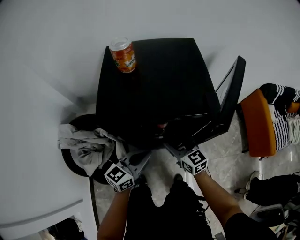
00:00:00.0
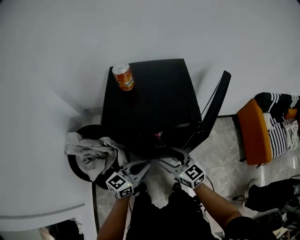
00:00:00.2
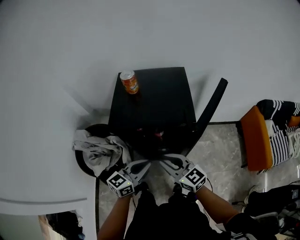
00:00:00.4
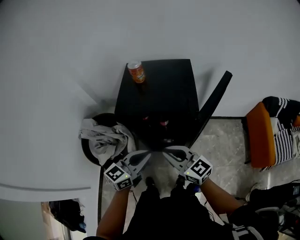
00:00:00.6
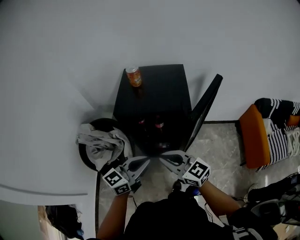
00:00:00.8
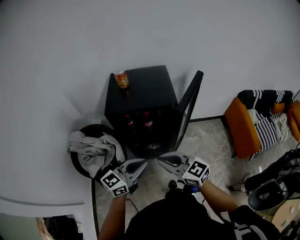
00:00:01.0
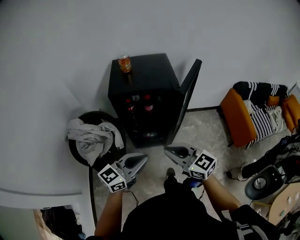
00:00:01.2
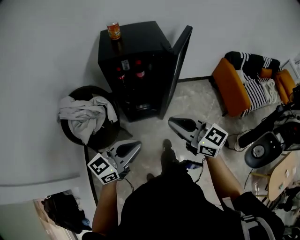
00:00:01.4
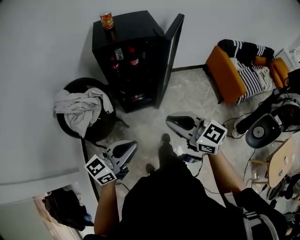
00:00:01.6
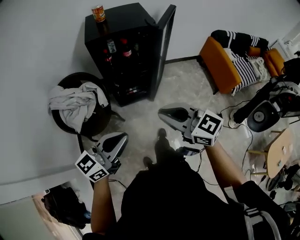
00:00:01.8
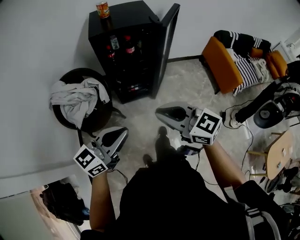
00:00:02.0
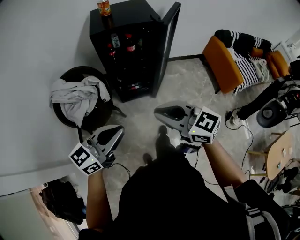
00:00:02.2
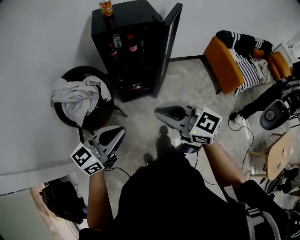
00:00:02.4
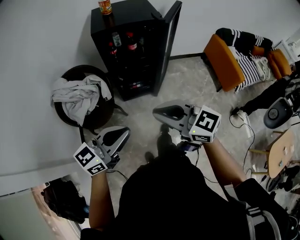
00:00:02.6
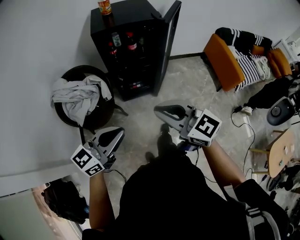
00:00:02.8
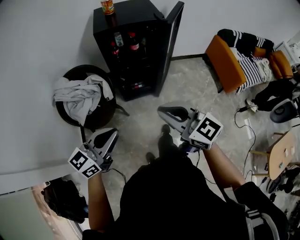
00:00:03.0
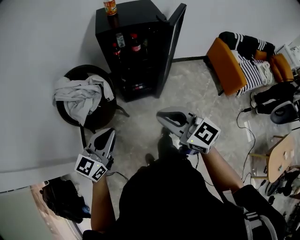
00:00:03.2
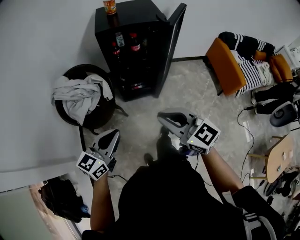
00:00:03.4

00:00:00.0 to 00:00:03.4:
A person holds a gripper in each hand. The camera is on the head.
00:00:00.0 to 00:00:01.6: The two grippers go some 40 cm backward and upward. The right gripper closes.
00:00:01.6 to 00:00:03.4: The left gripper heads to the left, covering approximately 10 cm, and turns by roughly 20 degrees. The right gripper shifts roughly 5 cm to the left.

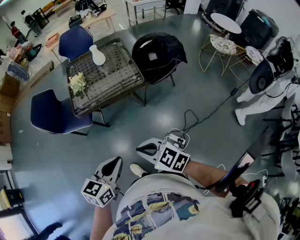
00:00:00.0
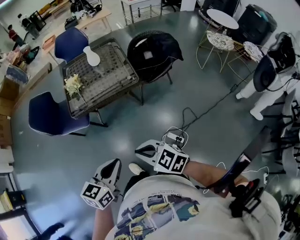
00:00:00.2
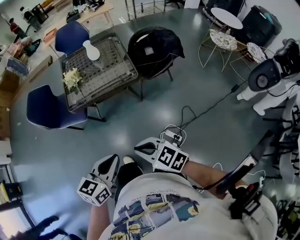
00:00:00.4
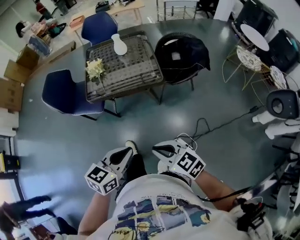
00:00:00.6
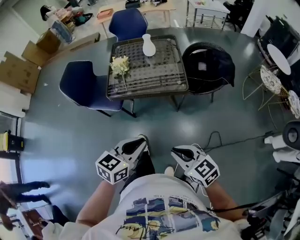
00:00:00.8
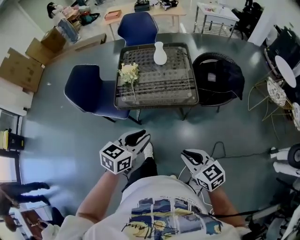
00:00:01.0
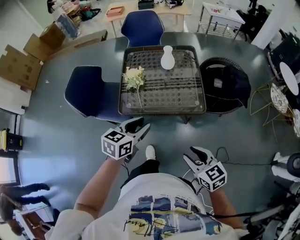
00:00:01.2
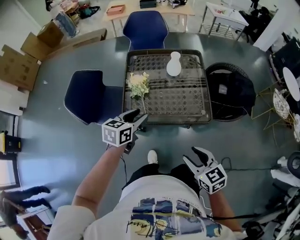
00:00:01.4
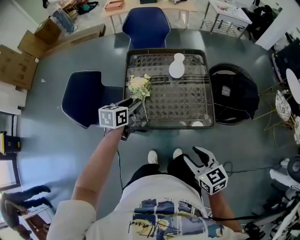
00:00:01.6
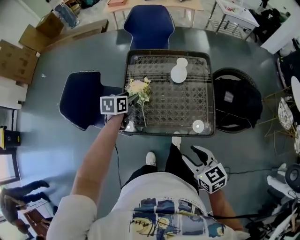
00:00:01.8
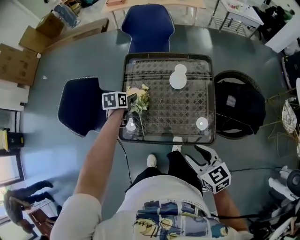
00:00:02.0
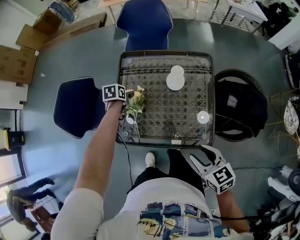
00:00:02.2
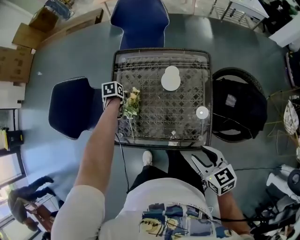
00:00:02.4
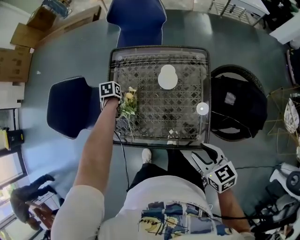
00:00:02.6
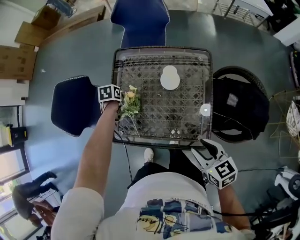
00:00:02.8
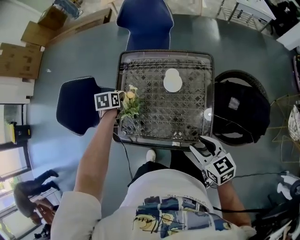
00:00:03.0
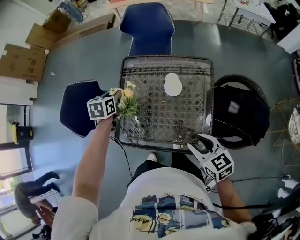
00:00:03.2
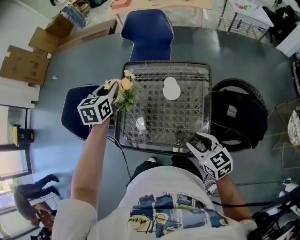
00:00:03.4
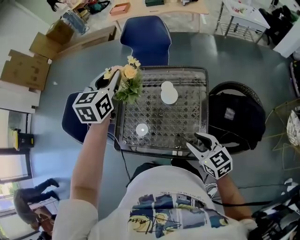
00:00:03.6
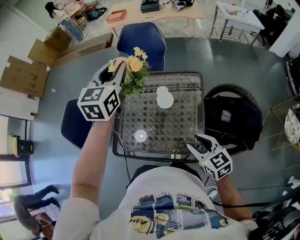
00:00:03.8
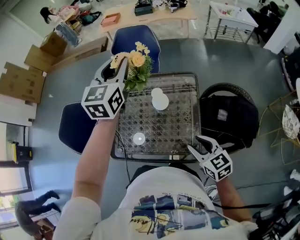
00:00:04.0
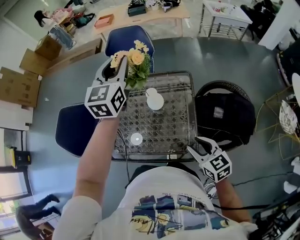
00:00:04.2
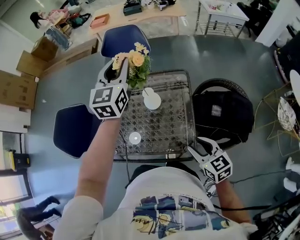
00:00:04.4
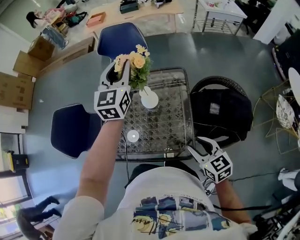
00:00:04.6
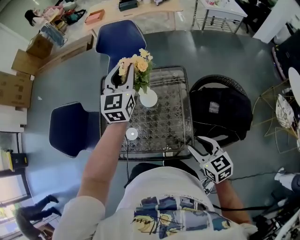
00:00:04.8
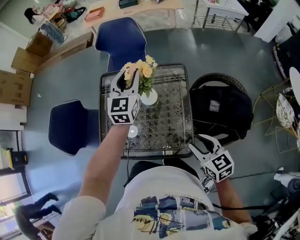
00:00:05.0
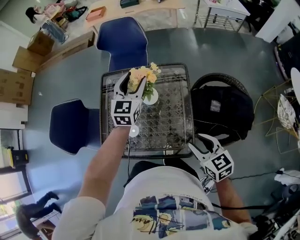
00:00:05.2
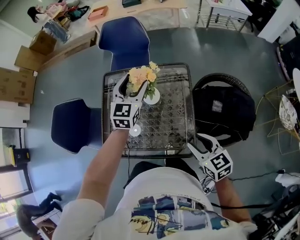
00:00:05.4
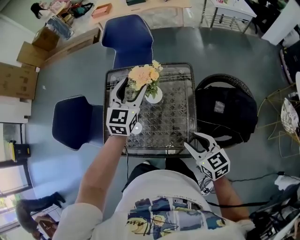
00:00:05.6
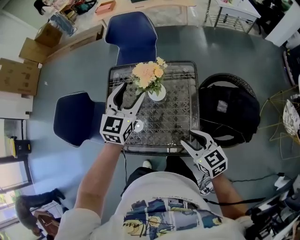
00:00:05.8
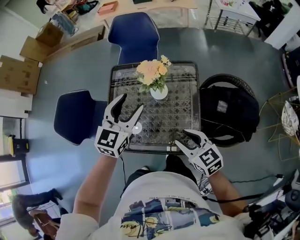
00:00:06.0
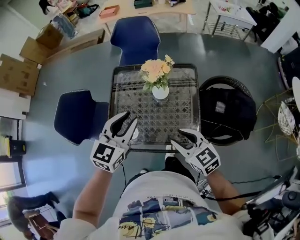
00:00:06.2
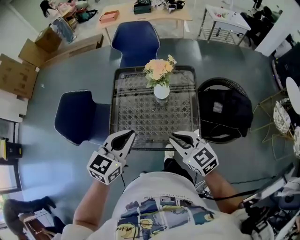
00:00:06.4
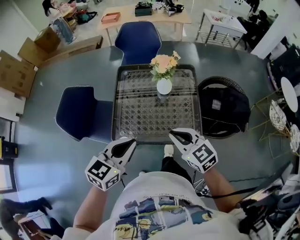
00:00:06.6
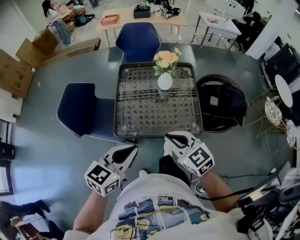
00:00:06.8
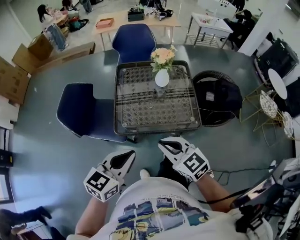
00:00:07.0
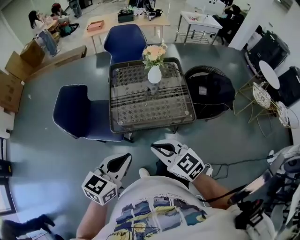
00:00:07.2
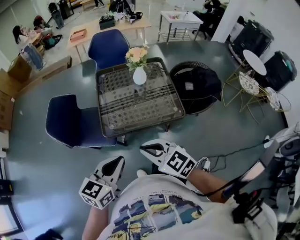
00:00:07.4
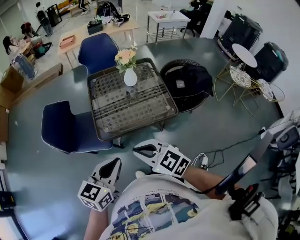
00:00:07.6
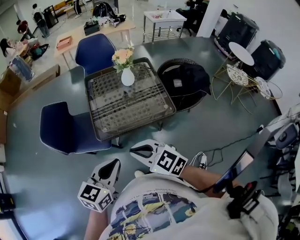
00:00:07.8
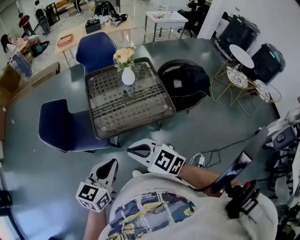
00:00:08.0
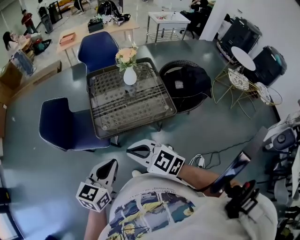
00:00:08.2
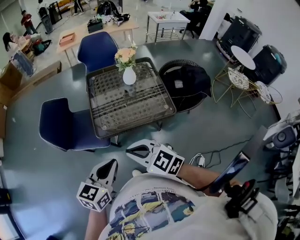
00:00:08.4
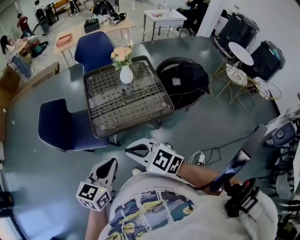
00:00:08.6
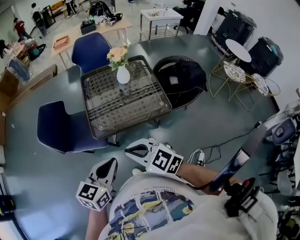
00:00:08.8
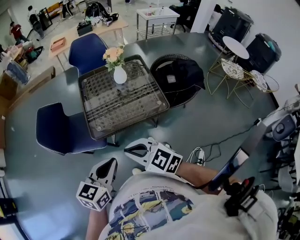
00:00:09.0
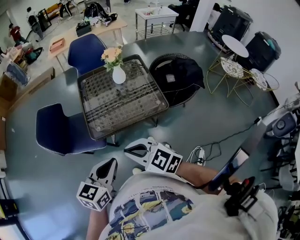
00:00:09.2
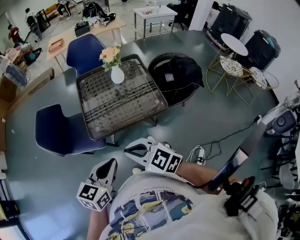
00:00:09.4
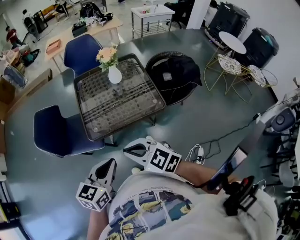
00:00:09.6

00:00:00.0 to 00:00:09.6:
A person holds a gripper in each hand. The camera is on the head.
00:00:00.0 to 00:00:01.6: The left gripper goes roughly 60 cm forward, rotates about 30 degrees, and opens its fingers. Meanwhile the right gripper shifts some 35 cm forward, and opens.
00:00:01.6 to 00:00:03.2: The left gripper reaches approximately 20 cm downward, then returns, rotates roughly 30 degrees, and opens and closes again; the right gripper moves approximately 25 cm.
00:00:03.2 to 00:00:04.8: The right gripper is displaced to the right by about 10 cm. Meanwhile the left gripper travels to the right and upward by about 30 cm, and angles its fingers upward, by some 40 degrees.
00:00:04.8 to 00:00:06.4: The right gripper is displaced to the left by approximately 15 cm, and closes its fingers. Meanwhile the left gripper goes about 35 cm backward and to the left, changes its angle by approximately 30 degrees, and opens, then closes again.
00:00:06.4 to 00:00:08.0: The two grippers go some 30 cm backward and to the left.
00:00:08.0 to 00:00:09.6: There are only small adjustments of the grippers.

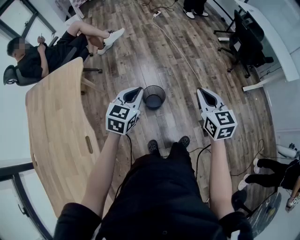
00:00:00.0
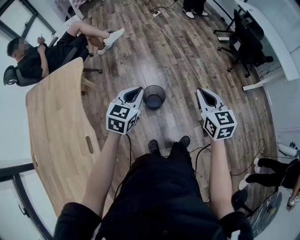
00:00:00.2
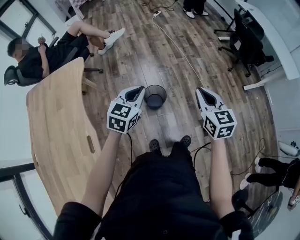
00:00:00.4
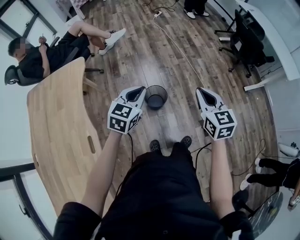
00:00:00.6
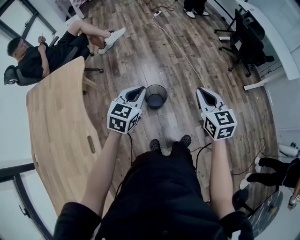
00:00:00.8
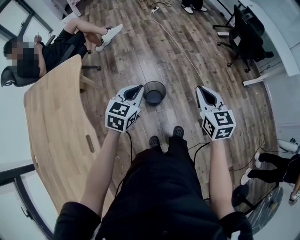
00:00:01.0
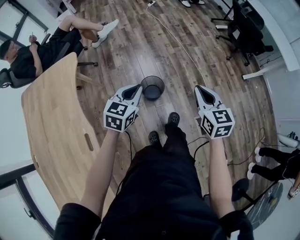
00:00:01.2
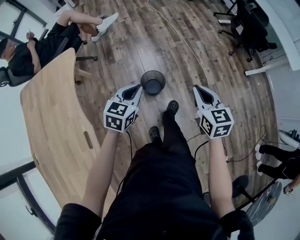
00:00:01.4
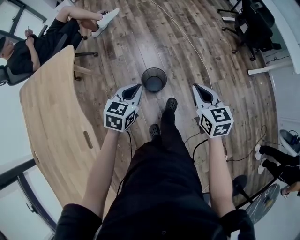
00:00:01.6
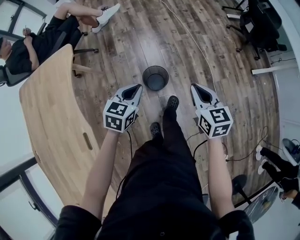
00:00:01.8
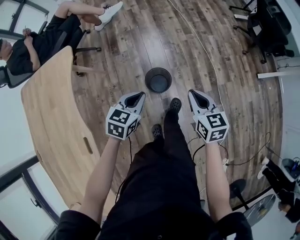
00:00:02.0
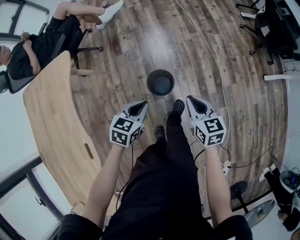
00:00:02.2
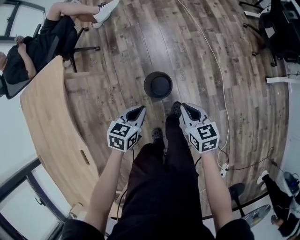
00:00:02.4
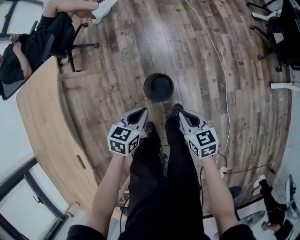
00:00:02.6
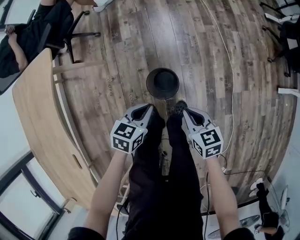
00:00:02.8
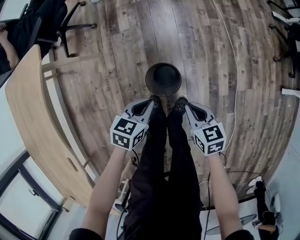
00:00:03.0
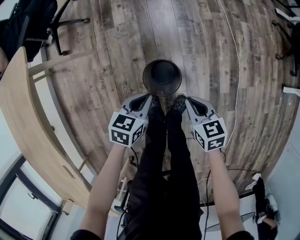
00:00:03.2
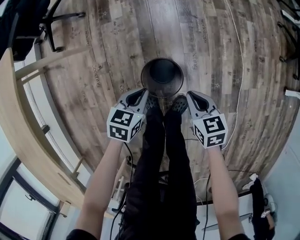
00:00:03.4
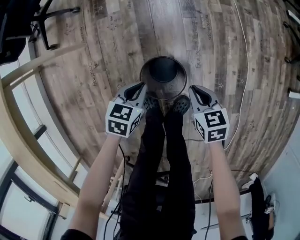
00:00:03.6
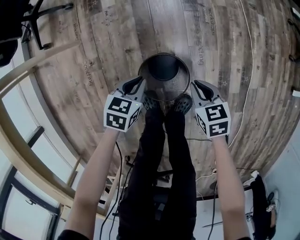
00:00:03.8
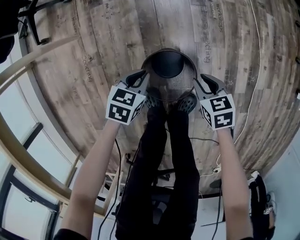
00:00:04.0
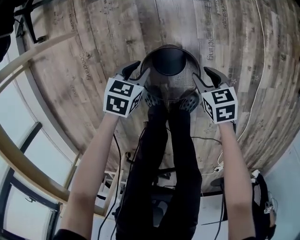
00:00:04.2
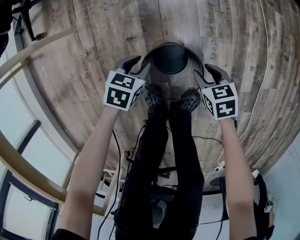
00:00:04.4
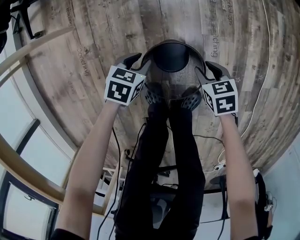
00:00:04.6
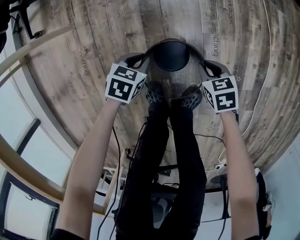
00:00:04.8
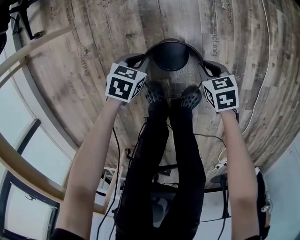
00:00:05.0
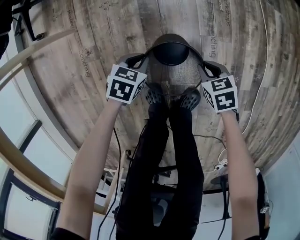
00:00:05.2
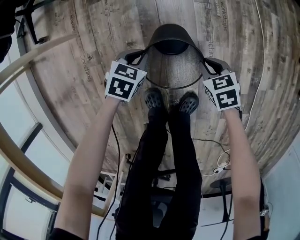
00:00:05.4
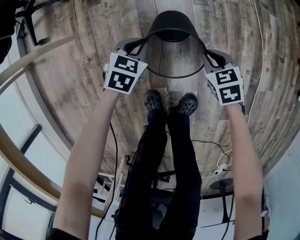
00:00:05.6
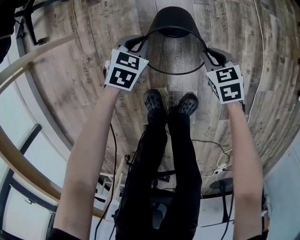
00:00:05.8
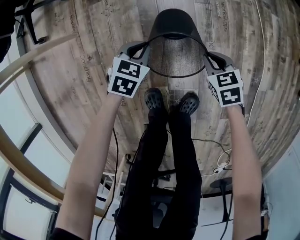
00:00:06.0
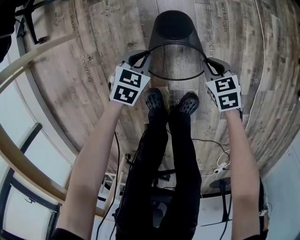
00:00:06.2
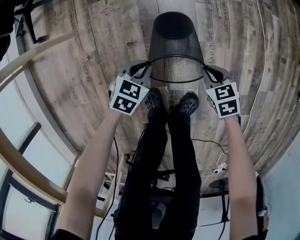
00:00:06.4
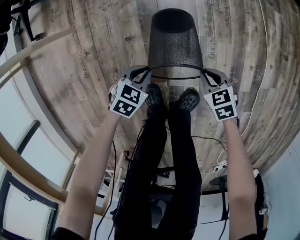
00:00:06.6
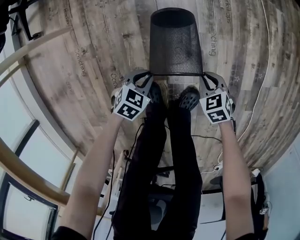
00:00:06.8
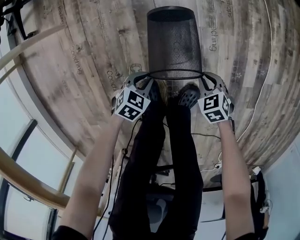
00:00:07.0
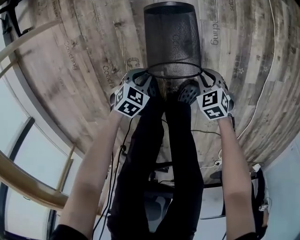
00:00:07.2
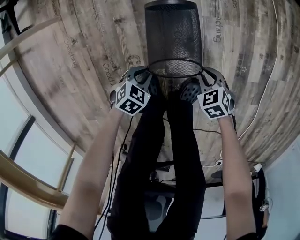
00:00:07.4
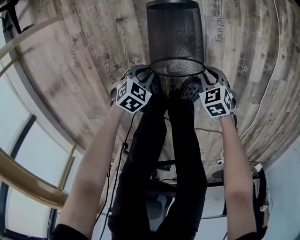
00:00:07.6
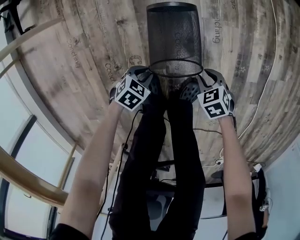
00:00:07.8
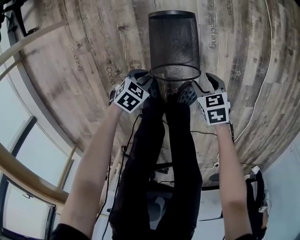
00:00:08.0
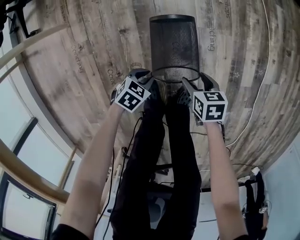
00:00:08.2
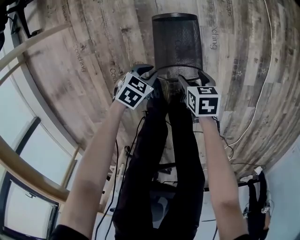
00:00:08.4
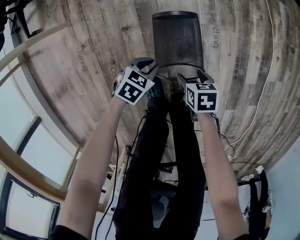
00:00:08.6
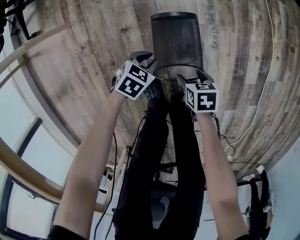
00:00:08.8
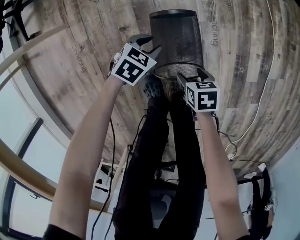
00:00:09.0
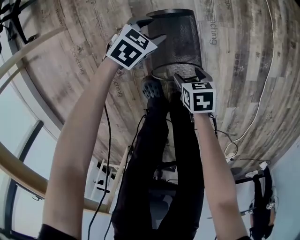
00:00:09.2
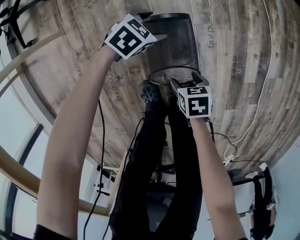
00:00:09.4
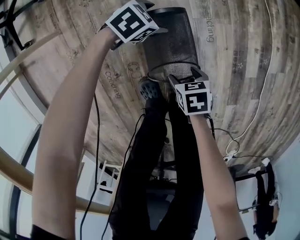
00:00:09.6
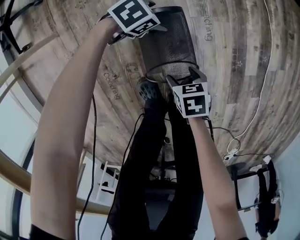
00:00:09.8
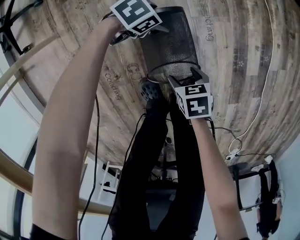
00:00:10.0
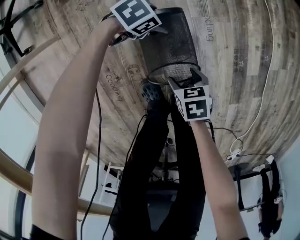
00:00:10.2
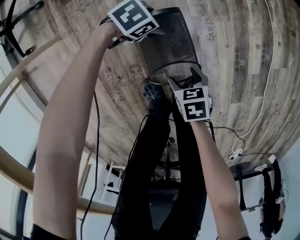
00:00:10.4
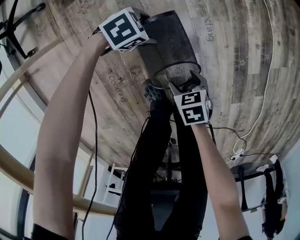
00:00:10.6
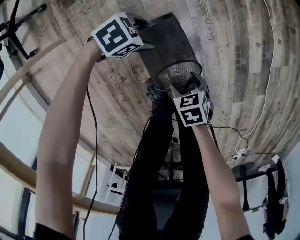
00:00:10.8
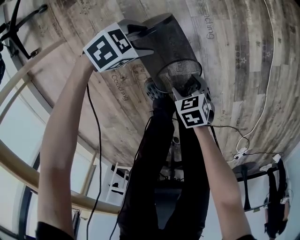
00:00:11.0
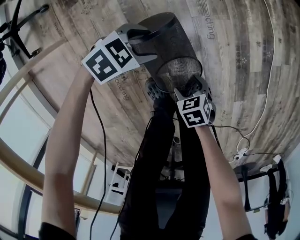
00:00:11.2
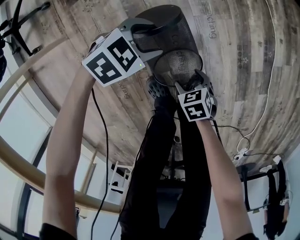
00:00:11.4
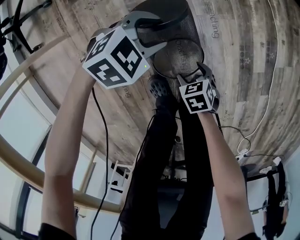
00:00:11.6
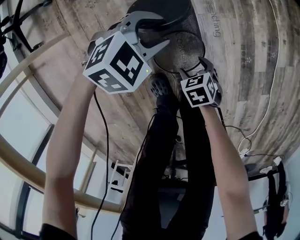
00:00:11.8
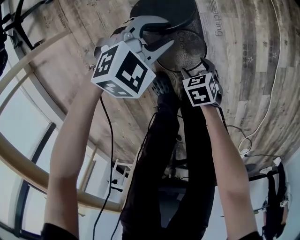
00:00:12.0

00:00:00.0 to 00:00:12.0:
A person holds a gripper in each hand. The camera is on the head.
00:00:00.0 to 00:00:01.6: The two grippers go approximately 5 cm downward.
00:00:01.6 to 00:00:03.0: Both grippers move downward and forward, about 30 cm. The right gripper swivels some 30 degrees. Meanwhile the left gripper changes its angle by some 20 degrees.
00:00:03.0 to 00:00:04.4: Both grippers travel together downward, approximately 35 cm. The right gripper turns by roughly 20 degrees, and opens.
00:00:04.4 to 00:00:06.0: The grippers both shift forward by some 5 cm. The right gripper closes.
00:00:06.0 to 00:00:07.6: The right gripper changes place by some 25 cm. Meanwhile the left gripper changes place by approximately 25 cm, and changes its angle by roughly 20 degrees.
00:00:07.6 to 00:00:09.0: The left gripper ends up about 15 cm from where it was; the right gripper shifts by roughly 10 cm, swivels roughly 40 degrees, and opens.
00:00:09.0 to 00:00:10.4: The left gripper changes place by approximately 10 cm, rotates roughly 30 degrees, and opens its fingers.
00:00:10.4 to 00:00:12.0: The left gripper is displaced upward by about 15 cm, turns by approximately 40 degrees, and closes.
